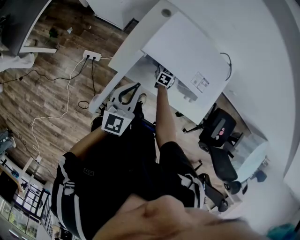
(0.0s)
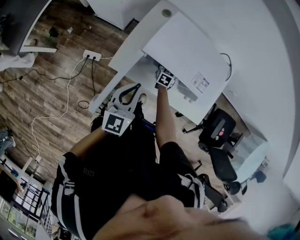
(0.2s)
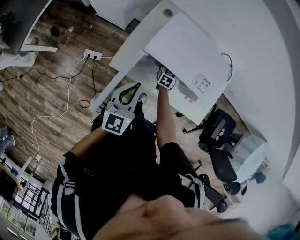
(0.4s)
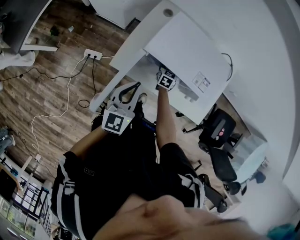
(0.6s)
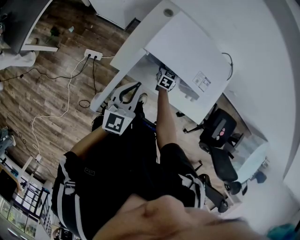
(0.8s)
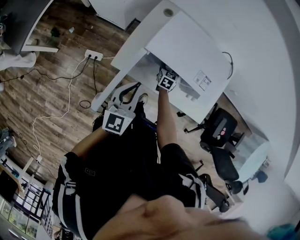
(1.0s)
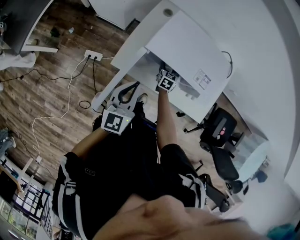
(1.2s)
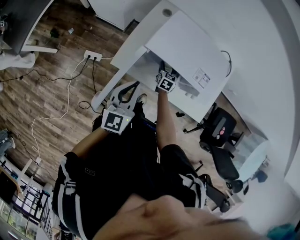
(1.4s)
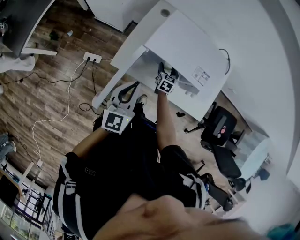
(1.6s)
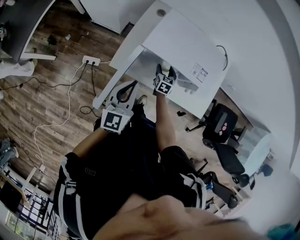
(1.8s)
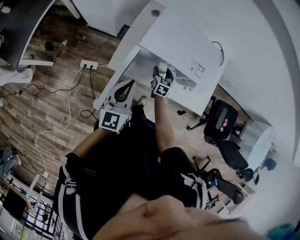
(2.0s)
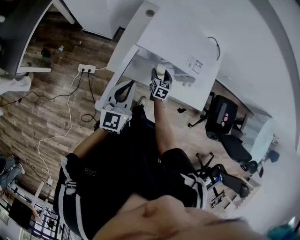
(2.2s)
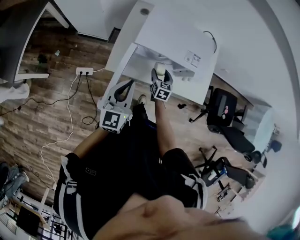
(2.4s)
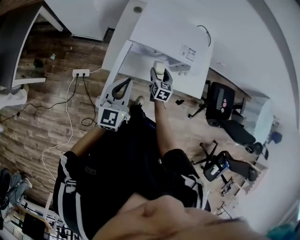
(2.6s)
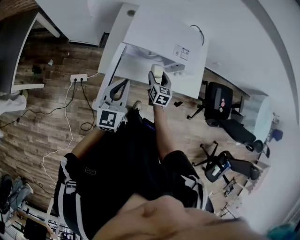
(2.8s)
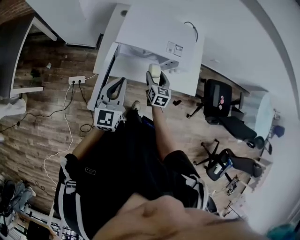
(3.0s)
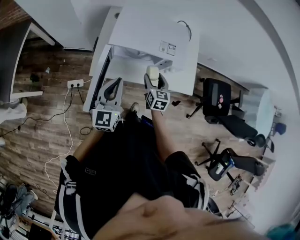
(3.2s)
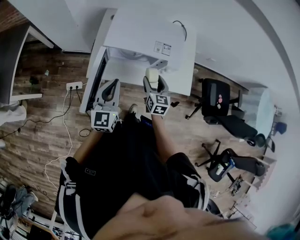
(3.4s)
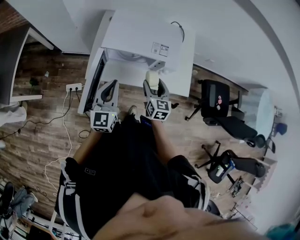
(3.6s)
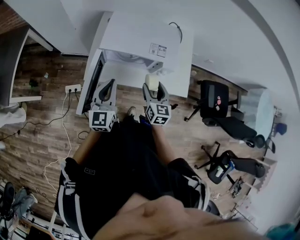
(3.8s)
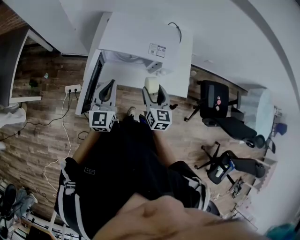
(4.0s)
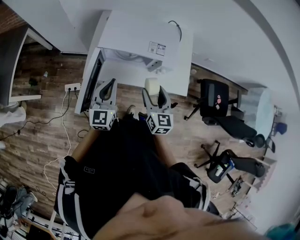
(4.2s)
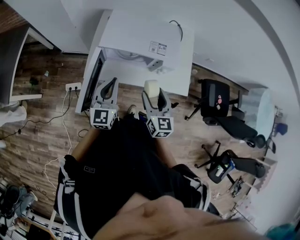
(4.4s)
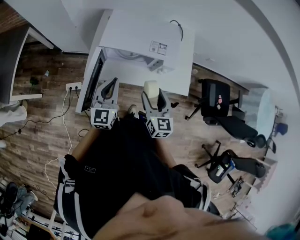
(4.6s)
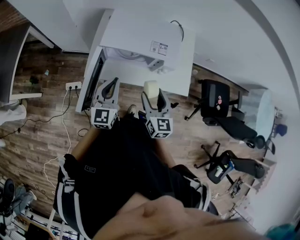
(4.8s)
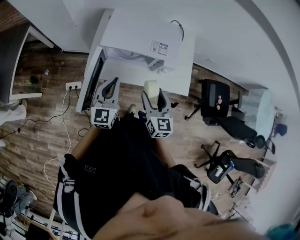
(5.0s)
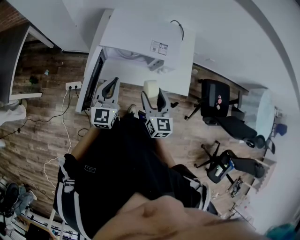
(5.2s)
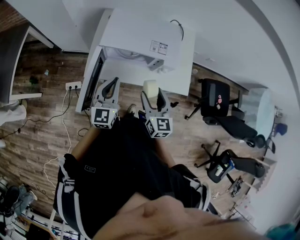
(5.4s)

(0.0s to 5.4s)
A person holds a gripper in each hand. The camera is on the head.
0.0s - 1.4s: The grippers make only small movements.
1.4s - 2.8s: The right gripper shifts approximately 20 cm backward and upward; the left gripper ends up some 5 cm from where it was.
2.8s - 4.0s: The right gripper moves upward, backward and to the right, approximately 15 cm, while the left gripper moves to the right, approximately 5 cm.
4.0s - 5.4s: The right gripper shifts by about 5 cm.

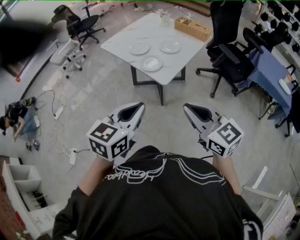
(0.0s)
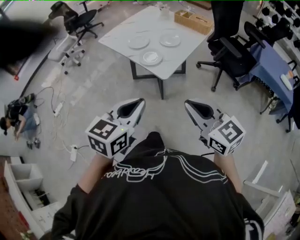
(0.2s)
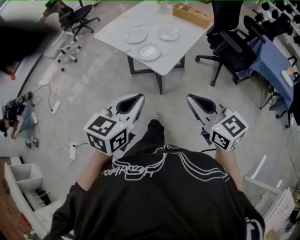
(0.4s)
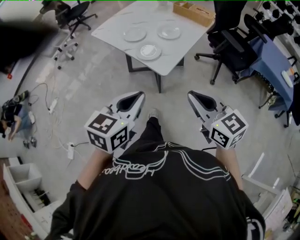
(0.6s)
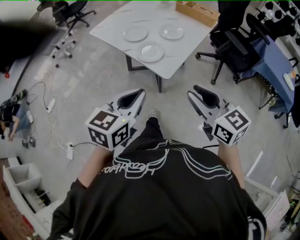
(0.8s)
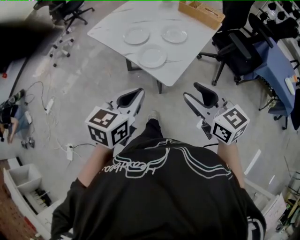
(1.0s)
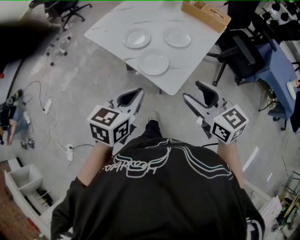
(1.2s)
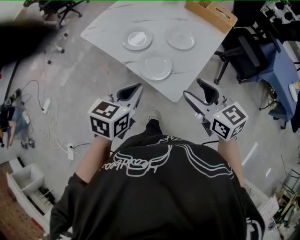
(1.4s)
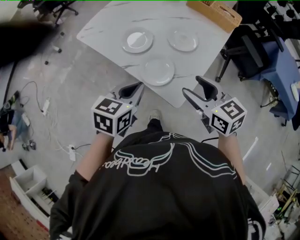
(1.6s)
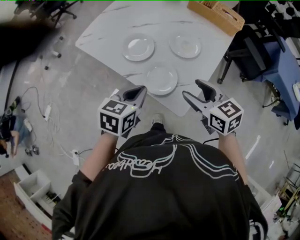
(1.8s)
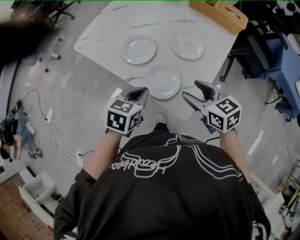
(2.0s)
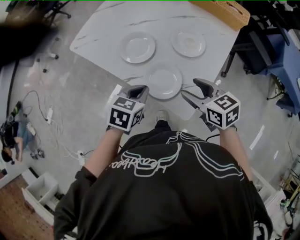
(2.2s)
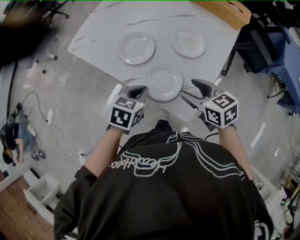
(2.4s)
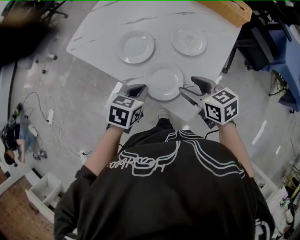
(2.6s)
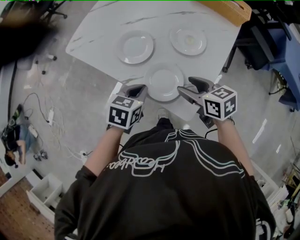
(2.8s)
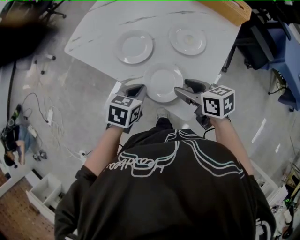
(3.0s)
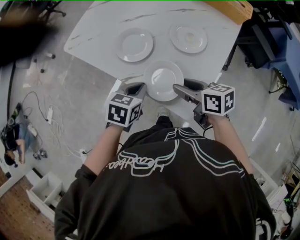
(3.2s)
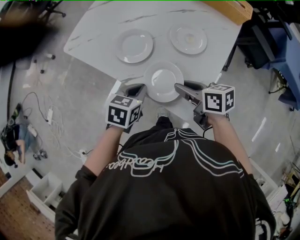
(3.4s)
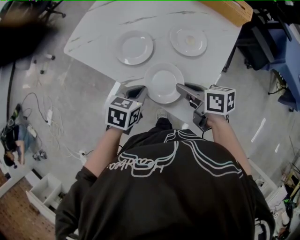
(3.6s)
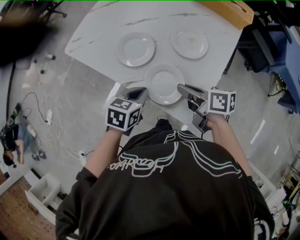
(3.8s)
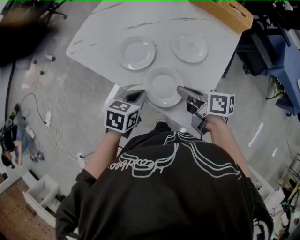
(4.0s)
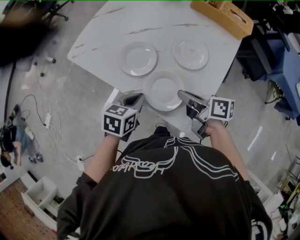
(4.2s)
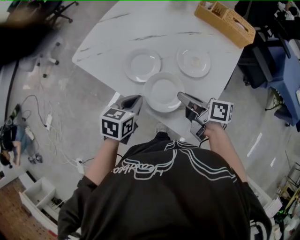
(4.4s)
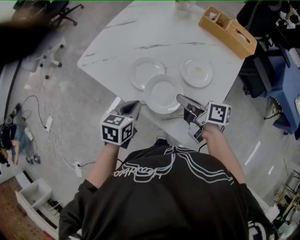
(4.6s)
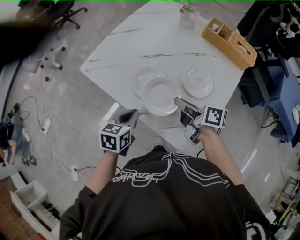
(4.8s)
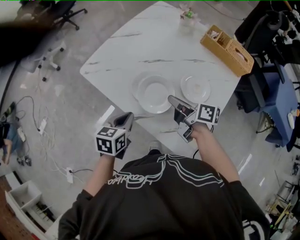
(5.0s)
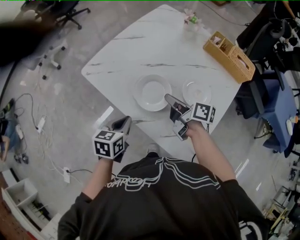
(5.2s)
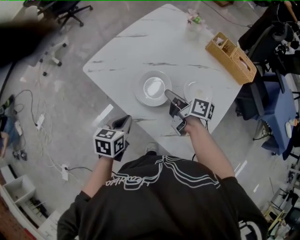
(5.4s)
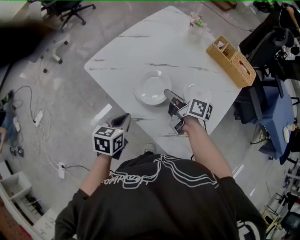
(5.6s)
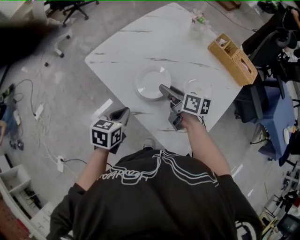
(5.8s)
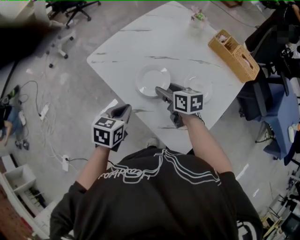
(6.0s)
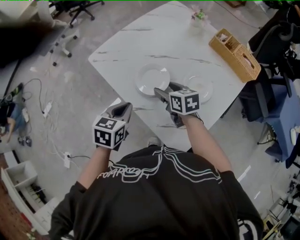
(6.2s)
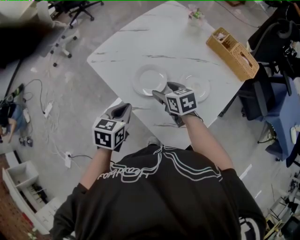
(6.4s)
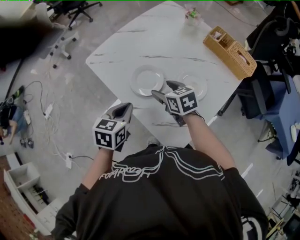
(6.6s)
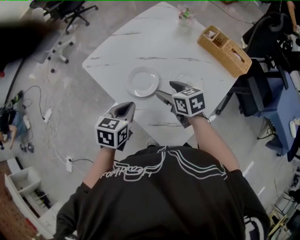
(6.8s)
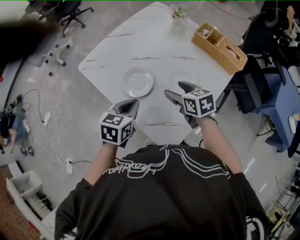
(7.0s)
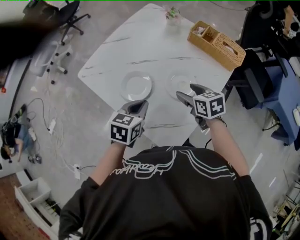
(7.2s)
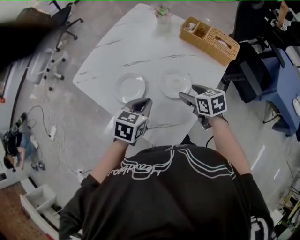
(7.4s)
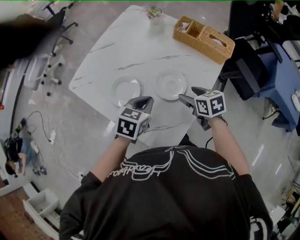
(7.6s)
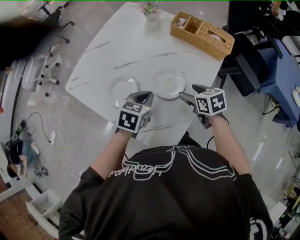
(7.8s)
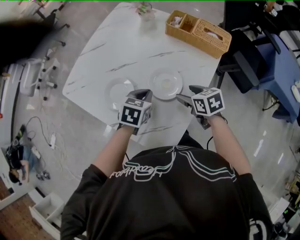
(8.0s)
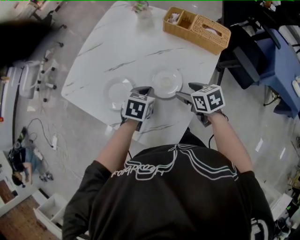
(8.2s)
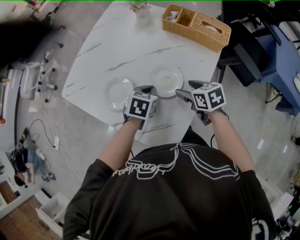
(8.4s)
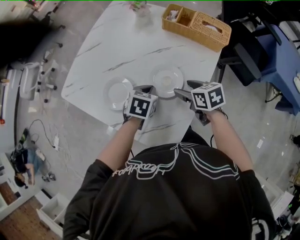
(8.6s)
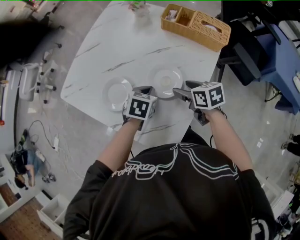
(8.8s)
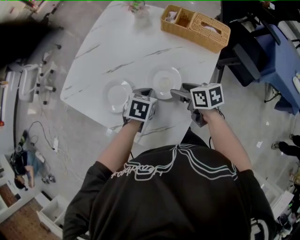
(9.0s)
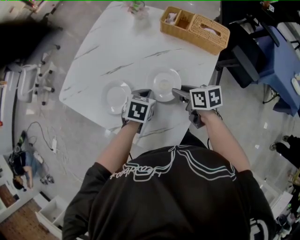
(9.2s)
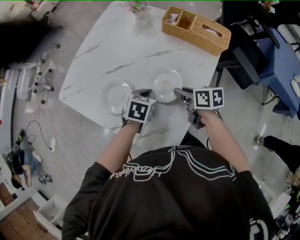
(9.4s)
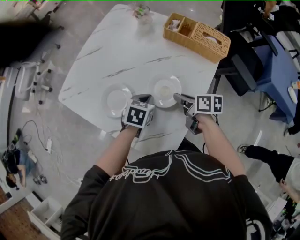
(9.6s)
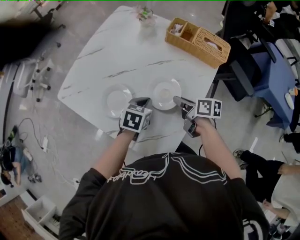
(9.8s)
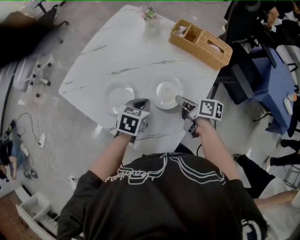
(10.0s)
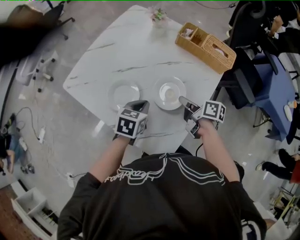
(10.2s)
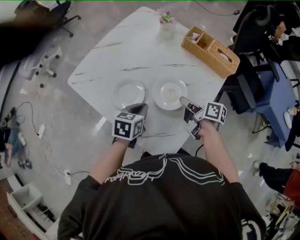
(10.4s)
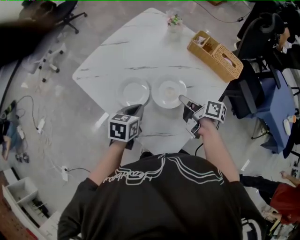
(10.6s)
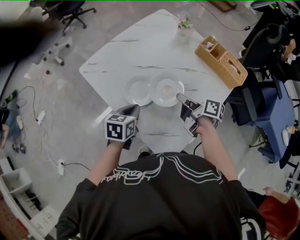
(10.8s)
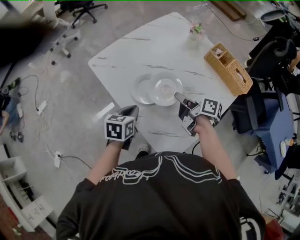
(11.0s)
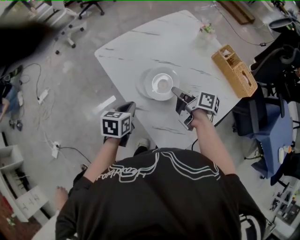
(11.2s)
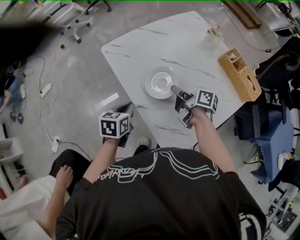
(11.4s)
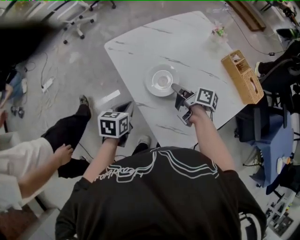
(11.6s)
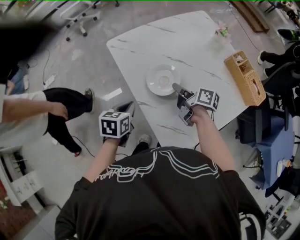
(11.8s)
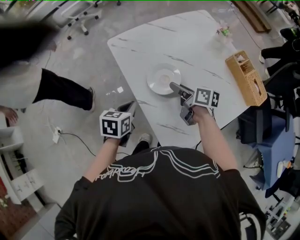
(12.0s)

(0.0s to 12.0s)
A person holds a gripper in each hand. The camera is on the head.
0.0s - 1.6s: The left gripper is displaced forward and downward by roughly 40 cm, while the right gripper goes approximately 35 cm forward, swivels approximately 20 degrees, and opens.
1.6s - 3.0s: Both grippers travel together downward and forward, about 15 cm. The right gripper swivels some 30 degrees.
3.0s - 4.4s: The left gripper moves roughly 5 cm; the right gripper moves forward, some 5 cm, rotates approximately 30 degrees, and closes its fingers.
4.4s - 6.0s: The right gripper is displaced forward and to the left by about 15 cm, rotates about 40 degrees, and opens up. The left gripper travels to the left by roughly 5 cm.
6.0s - 7.6s: Both grippers move to the right, roughly 25 cm.
7.6s - 9.0s: The left gripper heads downward, covering approximately 10 cm.
9.0s - 10.4s: The right gripper swivels some 30 degrees, and closes its fingers, while the left gripper goes some 10 cm to the left, and changes its angle by some 20 degrees.
10.4s - 12.0s: The right gripper ends up roughly 20 cm from where it was, rotates approximately 30 degrees, and opens up. Meanwhile the left gripper changes place by approximately 20 cm, and rotates about 30 degrees.

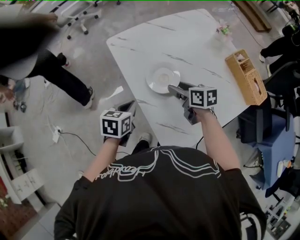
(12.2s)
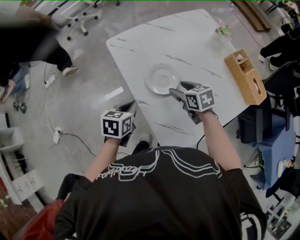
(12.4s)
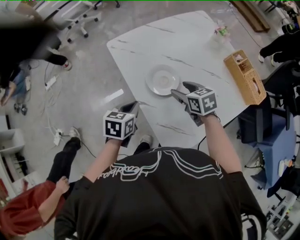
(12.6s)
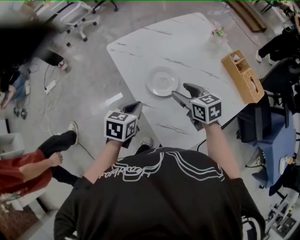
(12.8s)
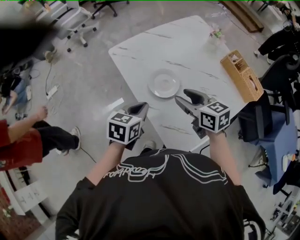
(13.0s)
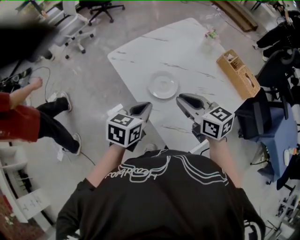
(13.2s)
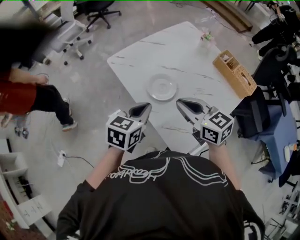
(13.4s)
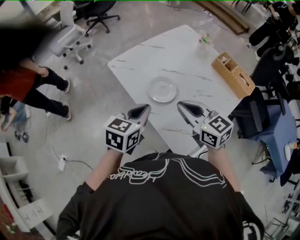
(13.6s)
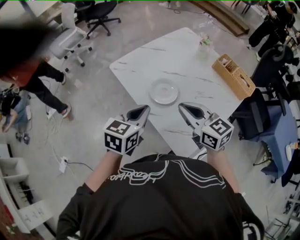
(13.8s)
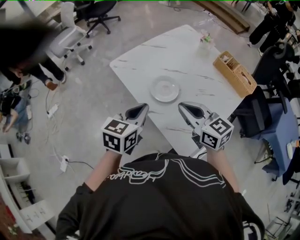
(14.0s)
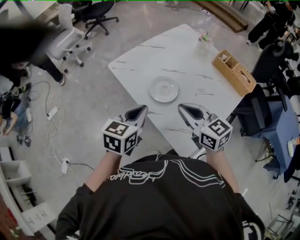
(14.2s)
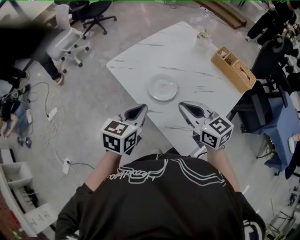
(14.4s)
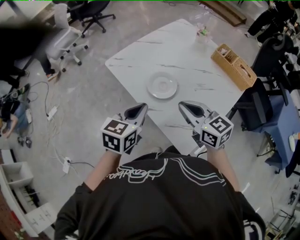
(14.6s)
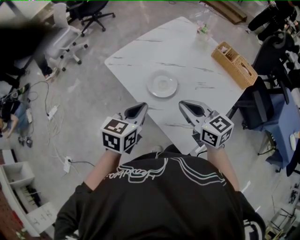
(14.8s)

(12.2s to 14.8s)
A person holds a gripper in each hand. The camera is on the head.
12.2s - 13.4s: The right gripper travels upward and backward by approximately 20 cm, rotates approximately 30 degrees, and closes up. The left gripper goes some 15 cm upward, and swivels some 30 degrees.
13.4s - 14.8s: There are only small adjustments of the grippers.

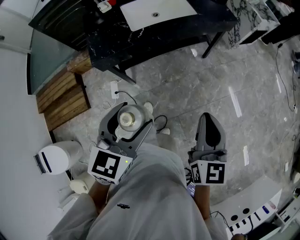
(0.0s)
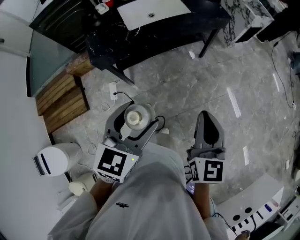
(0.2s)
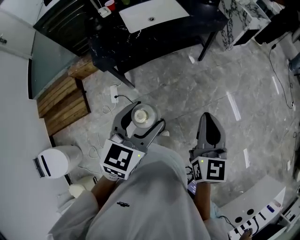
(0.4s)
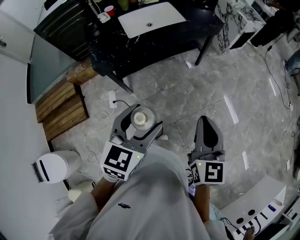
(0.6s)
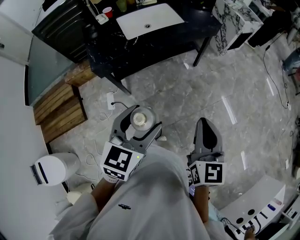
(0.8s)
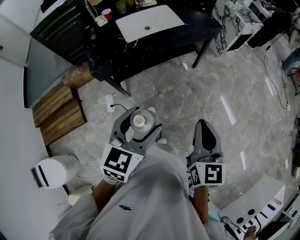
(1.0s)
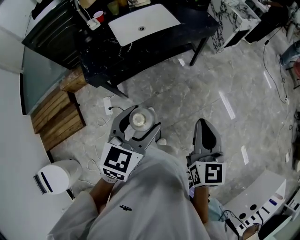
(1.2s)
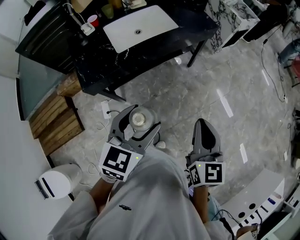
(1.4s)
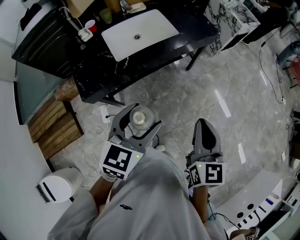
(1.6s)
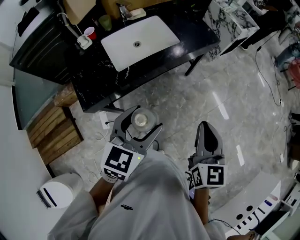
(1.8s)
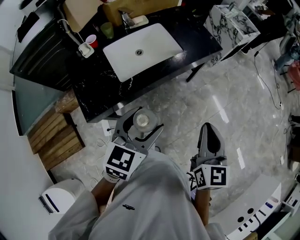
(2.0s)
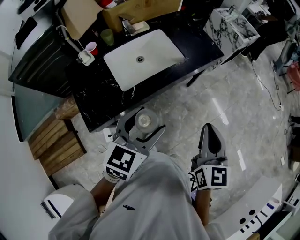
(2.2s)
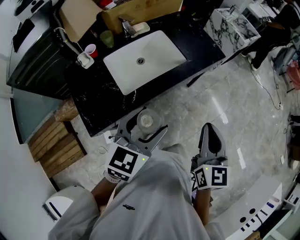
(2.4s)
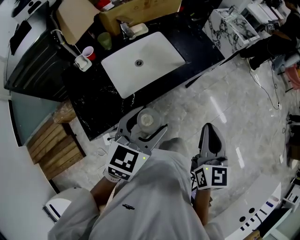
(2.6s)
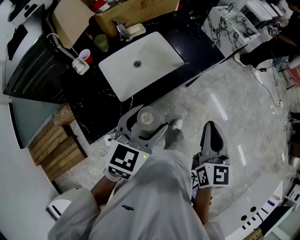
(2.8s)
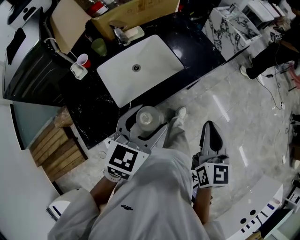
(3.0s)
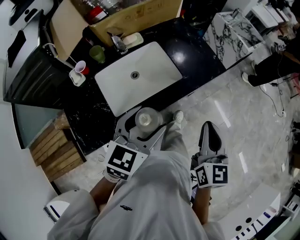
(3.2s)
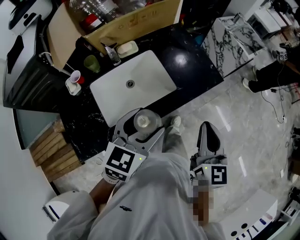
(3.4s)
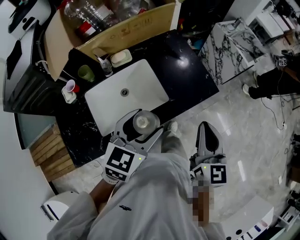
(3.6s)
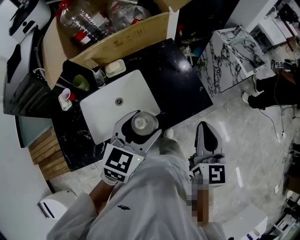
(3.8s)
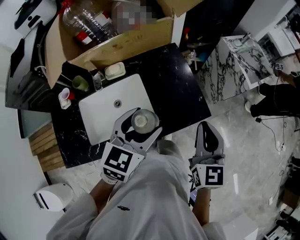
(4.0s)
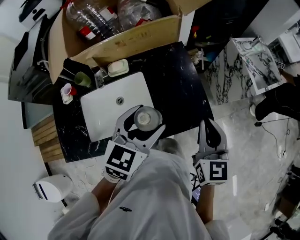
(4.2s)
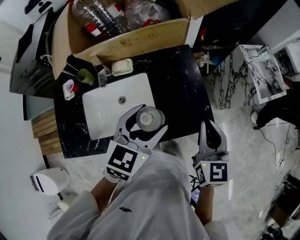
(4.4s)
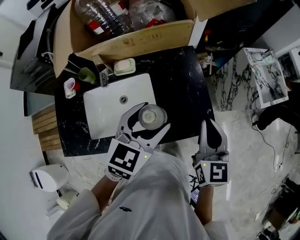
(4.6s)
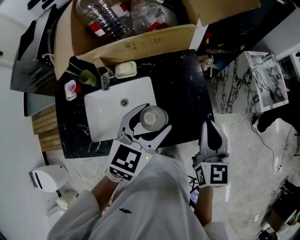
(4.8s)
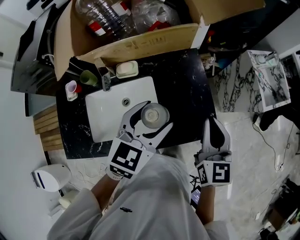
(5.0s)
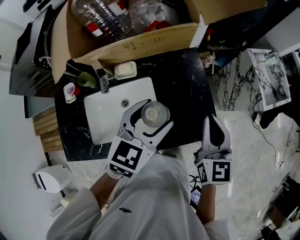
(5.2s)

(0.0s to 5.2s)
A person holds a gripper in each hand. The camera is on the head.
0.0s - 1.8s: Both grippers move forward, some 15 cm.
1.8s - 3.4s: Both grippers travel together forward, approximately 30 cm.
3.4s - 5.2s: The two grippers go roughly 30 cm forward. The right gripper swivels roughly 20 degrees.
